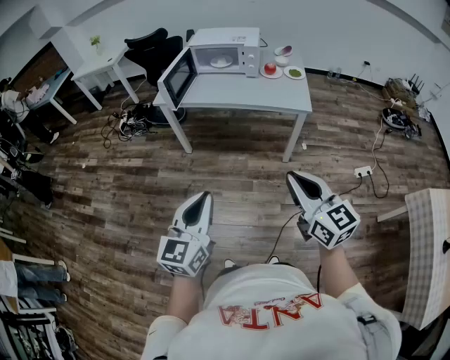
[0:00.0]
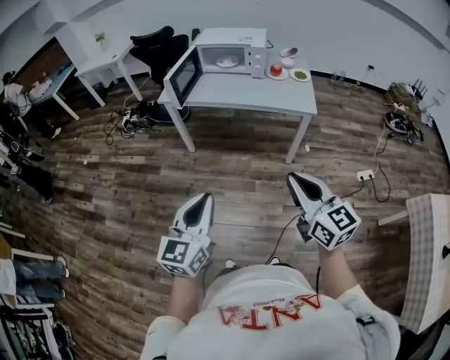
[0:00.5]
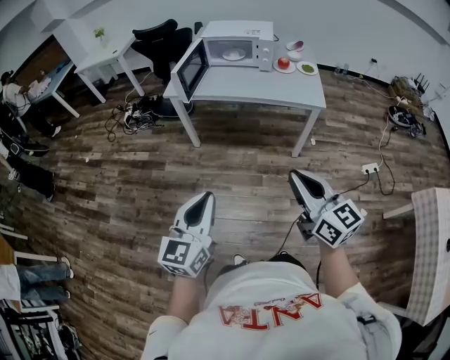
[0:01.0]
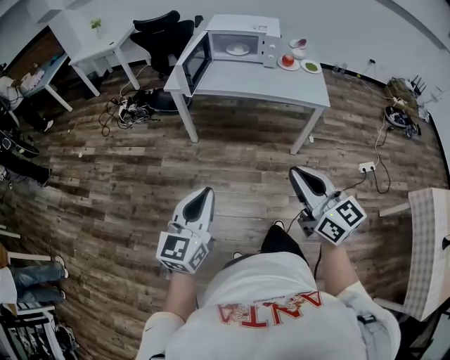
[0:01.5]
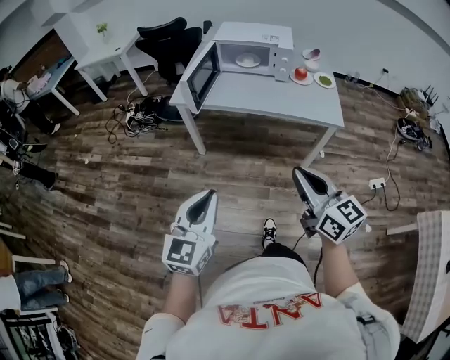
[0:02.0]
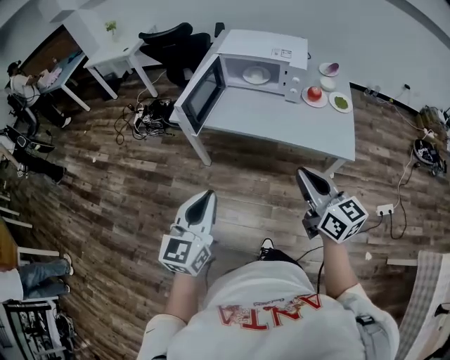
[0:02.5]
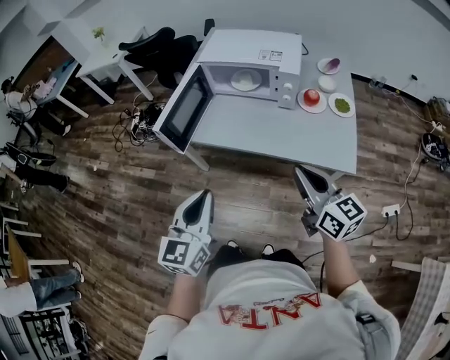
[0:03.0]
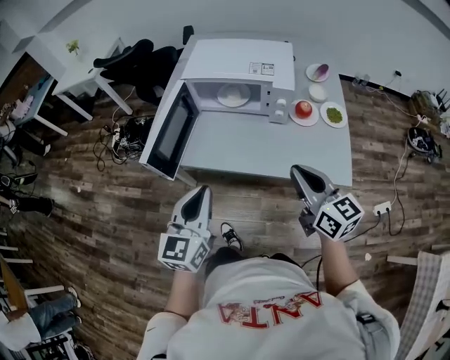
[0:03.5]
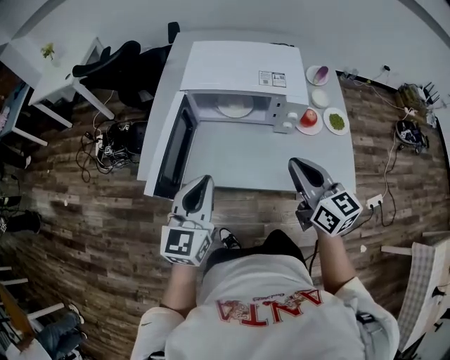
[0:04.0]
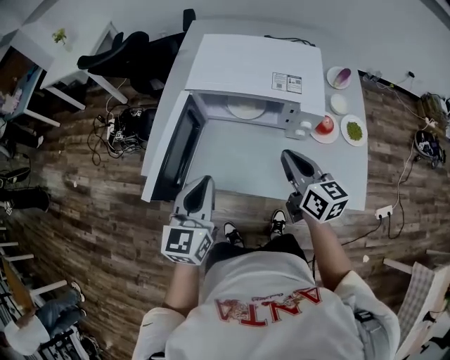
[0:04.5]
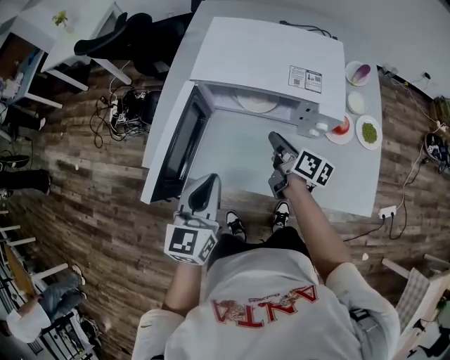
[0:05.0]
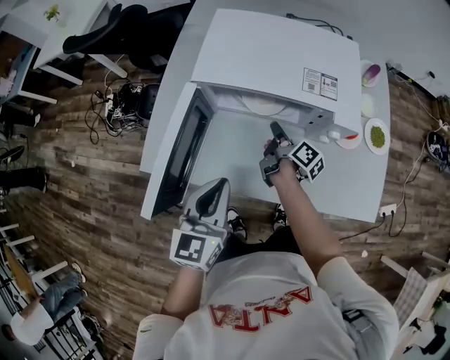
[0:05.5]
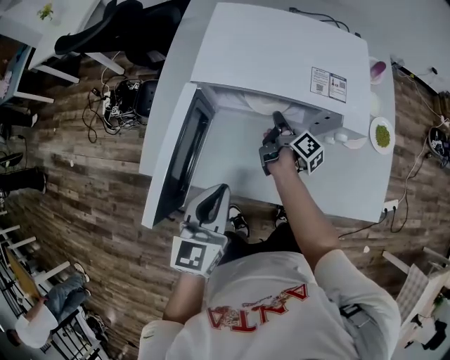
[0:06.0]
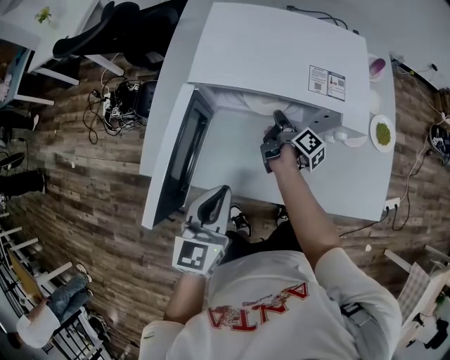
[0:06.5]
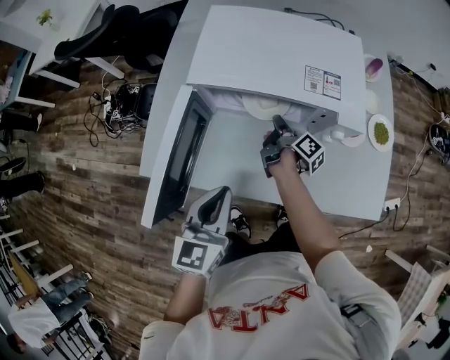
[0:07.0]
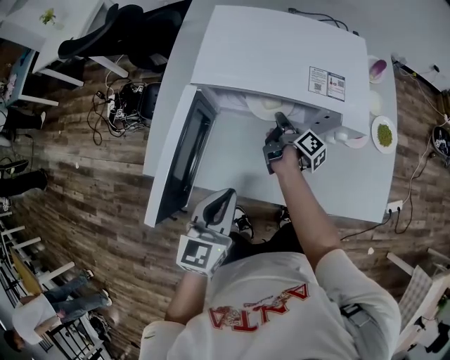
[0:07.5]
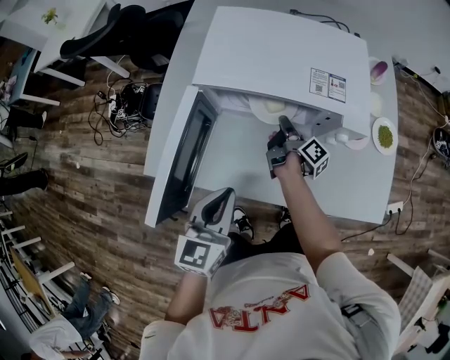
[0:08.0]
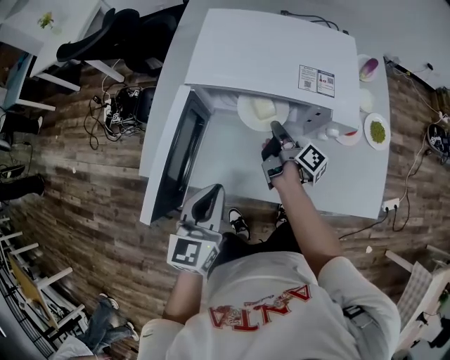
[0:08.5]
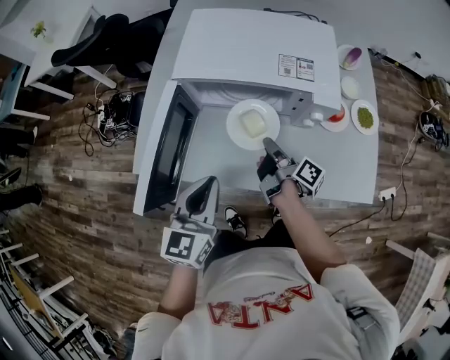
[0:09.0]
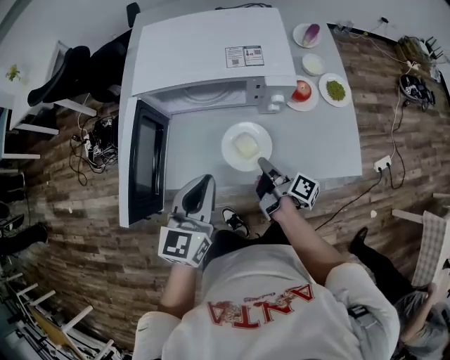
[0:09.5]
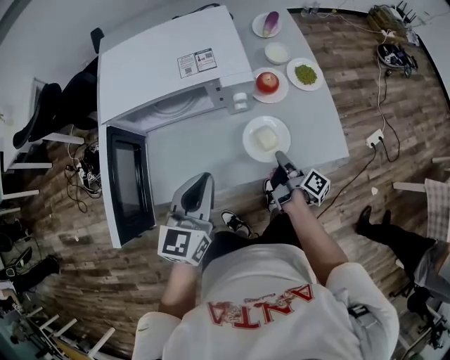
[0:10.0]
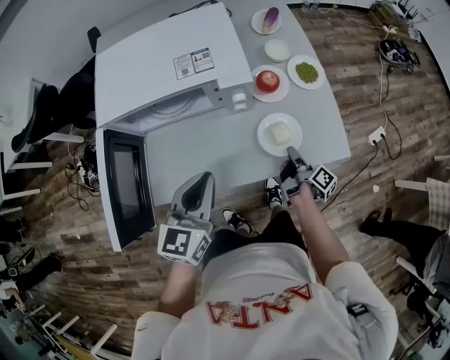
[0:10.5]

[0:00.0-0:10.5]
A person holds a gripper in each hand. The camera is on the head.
0:00.0 to 0:02.0: Both grippers travel together forward and to the left, roughly 15 cm.
0:02.0 to 0:04.0: The pair of grippers is taken forward, approximately 50 cm.
0:04.0 to 0:06.5: The left gripper shifts some 15 cm downward and forward, while the right gripper travels forward and downward by some 40 cm, and rotates around the line of its fingers by about 70 degrees, clockwise from behind.
0:06.5 to 0:08.5: The right gripper ends up about 5 cm from where it was.
0:08.5 to 0:10.5: The right gripper shifts approximately 35 cm to the right and backward, and turns by roughly 20 degrees, while the left gripper travels to the right by about 15 cm, and swivels roughly 20 degrees.

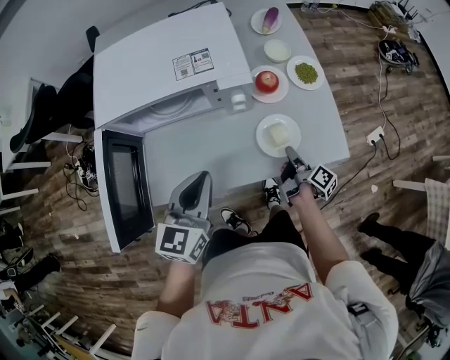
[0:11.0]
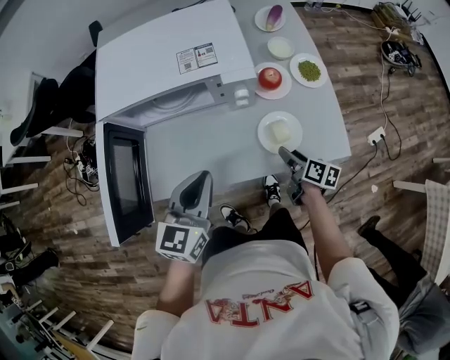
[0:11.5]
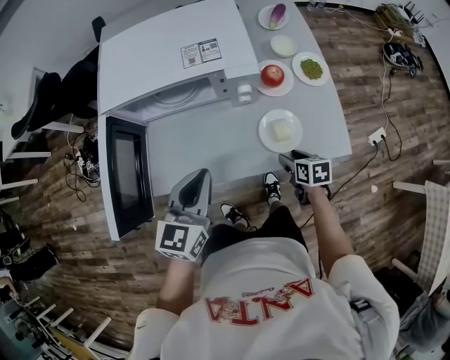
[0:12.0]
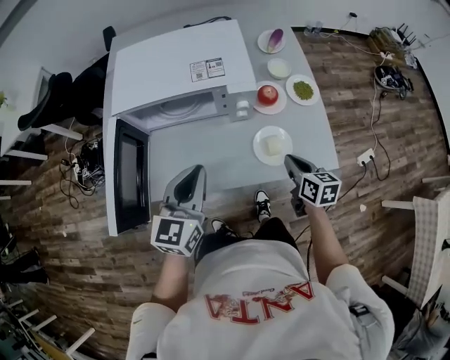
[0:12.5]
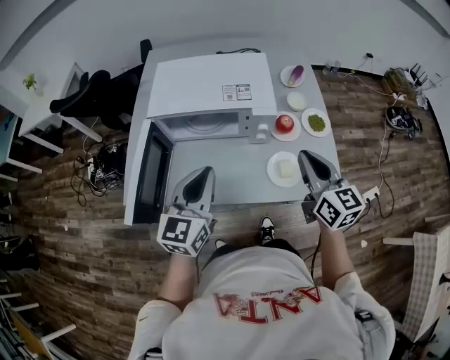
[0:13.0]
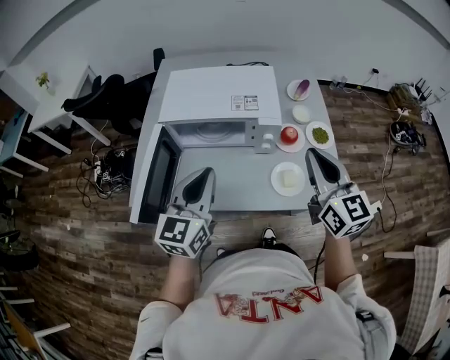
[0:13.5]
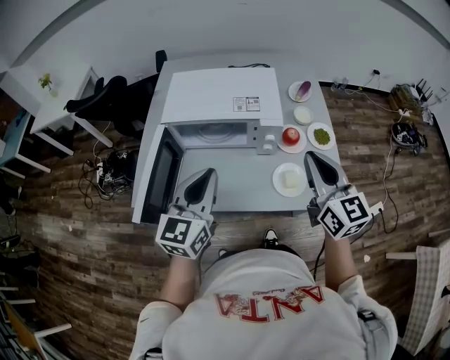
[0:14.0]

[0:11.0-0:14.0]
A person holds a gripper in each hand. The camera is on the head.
0:11.0 to 0:12.5: The right gripper goes some 10 cm upward, rotates around the line of its fingers by about 60 degrees, counterclockwise from behind, and opens, then closes once more.
0:12.5 to 0:14.0: The right gripper moves upward, roughly 25 cm, and tips its fingers upward by approximately 30 degrees; the left gripper is displaced upward by some 10 cm.

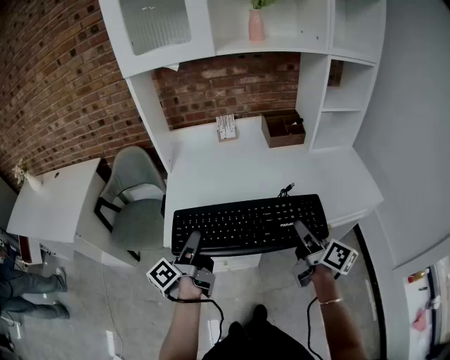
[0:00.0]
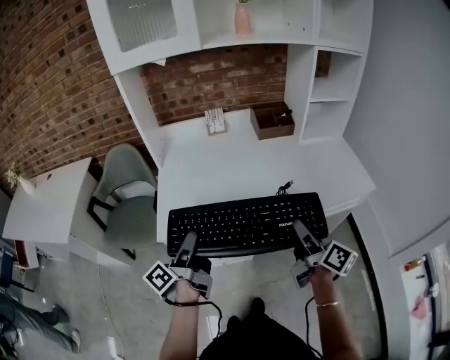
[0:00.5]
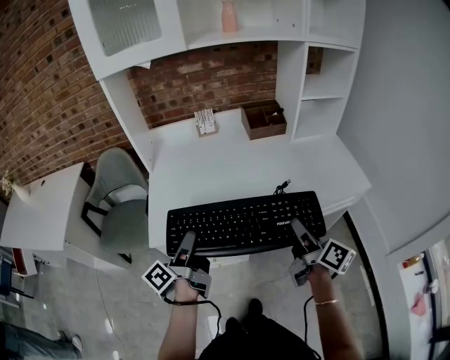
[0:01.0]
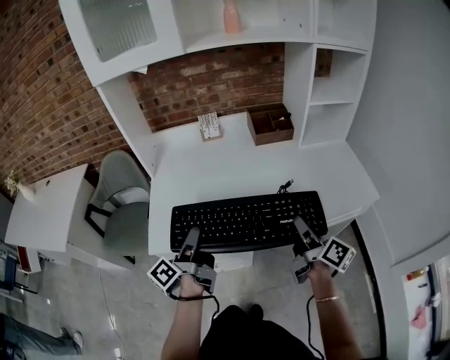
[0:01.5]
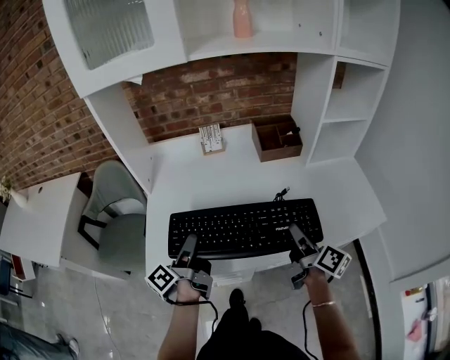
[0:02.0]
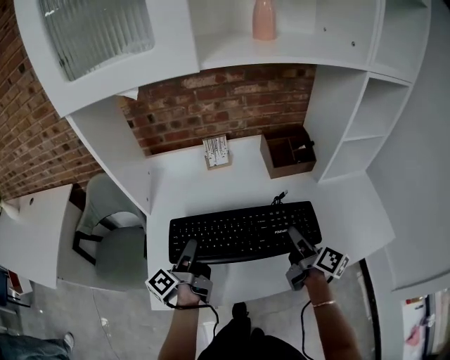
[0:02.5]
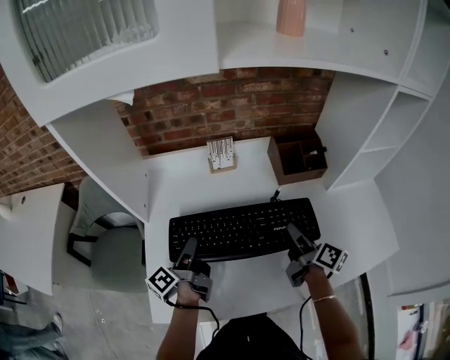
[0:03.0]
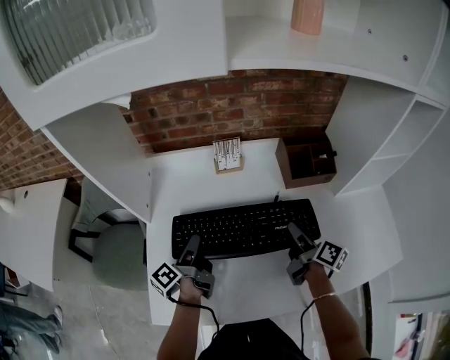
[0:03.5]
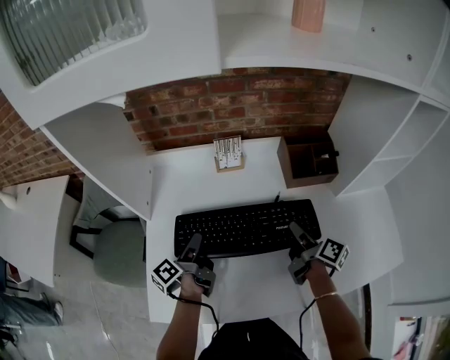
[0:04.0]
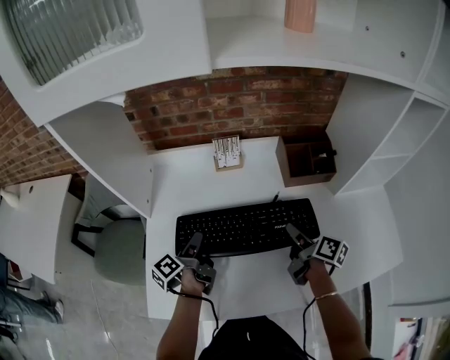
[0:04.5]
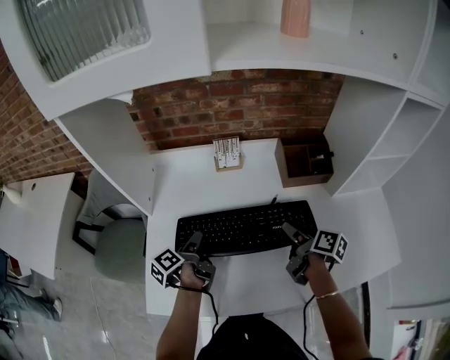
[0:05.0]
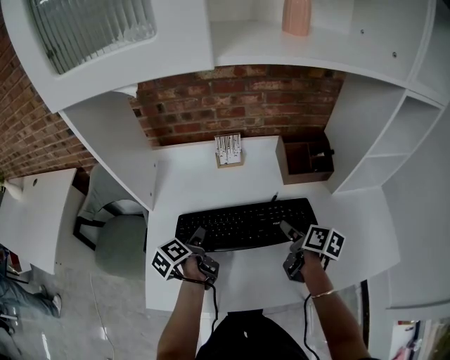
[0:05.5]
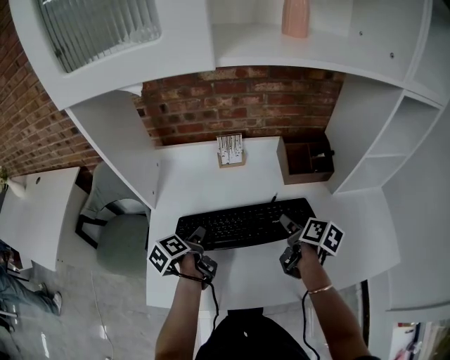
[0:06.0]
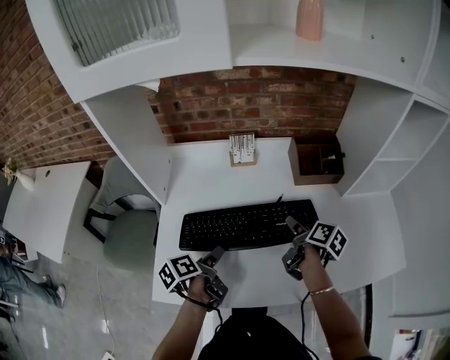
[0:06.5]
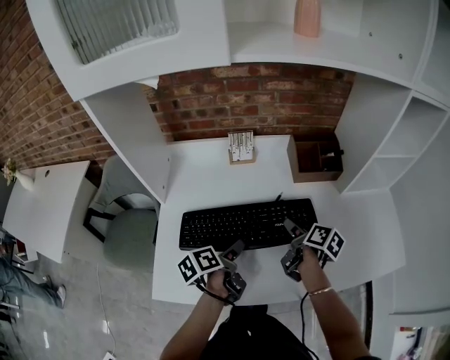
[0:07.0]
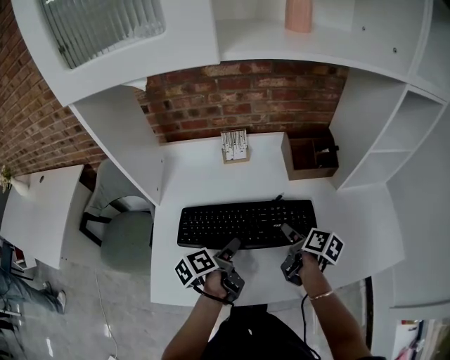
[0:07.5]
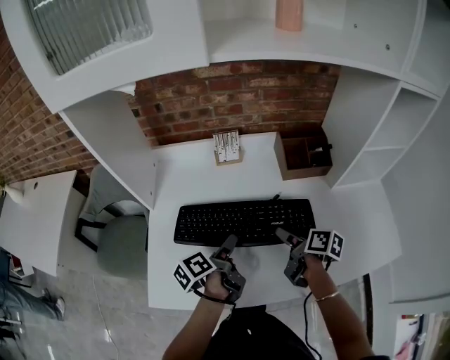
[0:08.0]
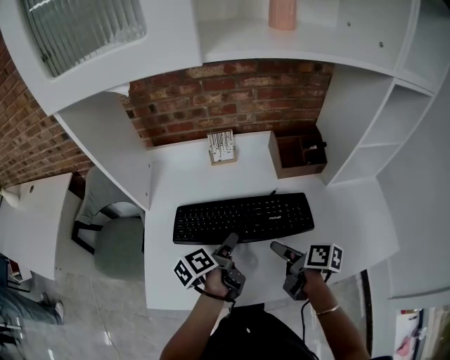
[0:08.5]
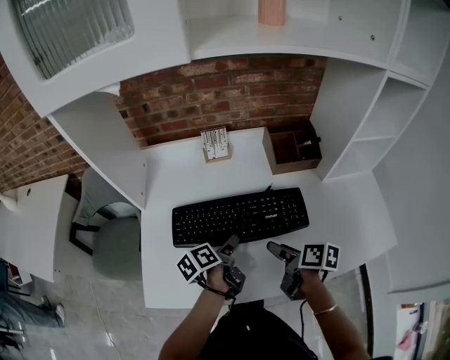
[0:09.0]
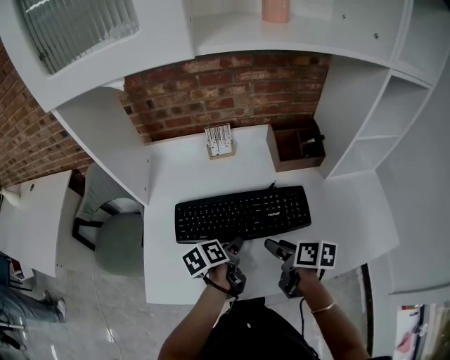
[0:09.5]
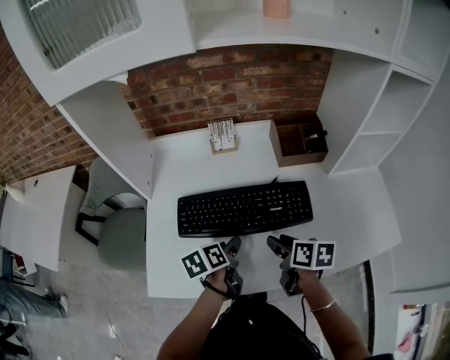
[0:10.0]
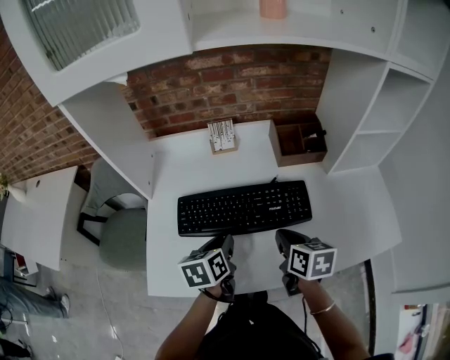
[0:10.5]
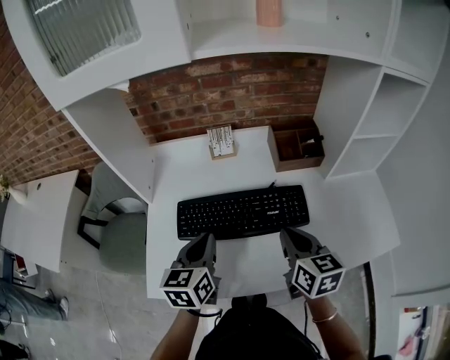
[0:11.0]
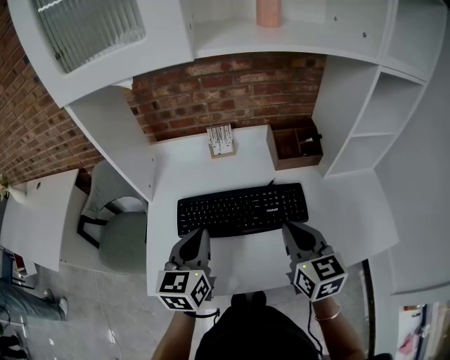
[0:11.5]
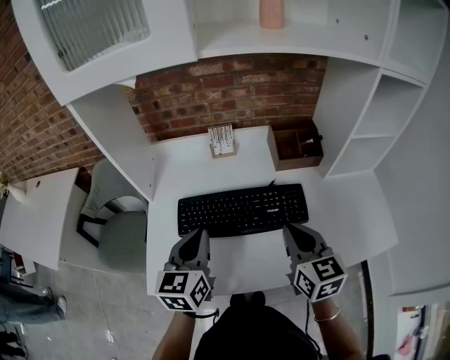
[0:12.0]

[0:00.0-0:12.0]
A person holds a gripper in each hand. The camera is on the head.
0:00.0 to 0:02.0: The right gripper changes place by about 15 cm.
0:02.0 to 0:04.0: The right gripper changes place by some 20 cm.
0:04.0 to 0:06.0: The right gripper swivels roughly 20 degrees, and opens up.
0:06.0 to 0:08.0: The right gripper changes place by about 5 cm.
0:08.0 to 0:10.0: The right gripper changes place by approximately 5 cm, and rotates roughly 20 degrees.
0:10.0 to 0:12.0: The right gripper heads upward, covering roughly 15 cm, turns by about 40 degrees, and closes its fingers.

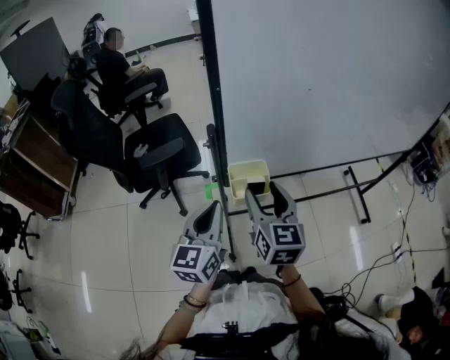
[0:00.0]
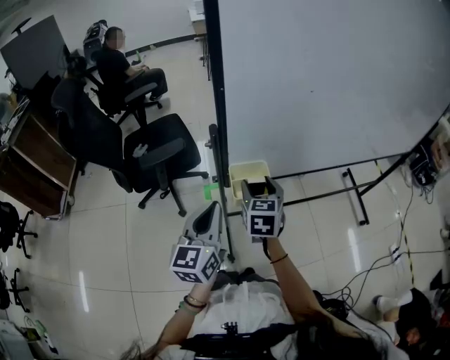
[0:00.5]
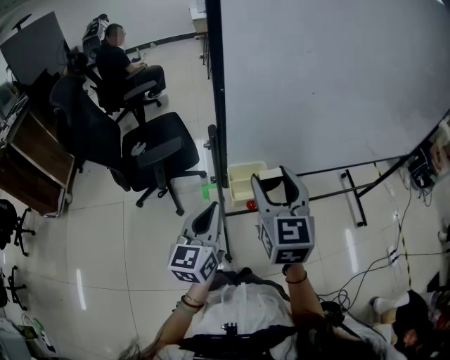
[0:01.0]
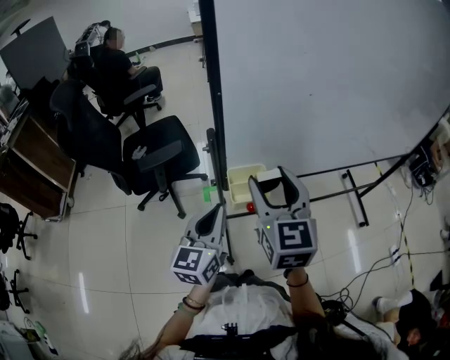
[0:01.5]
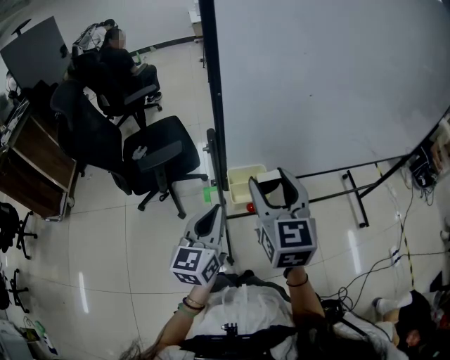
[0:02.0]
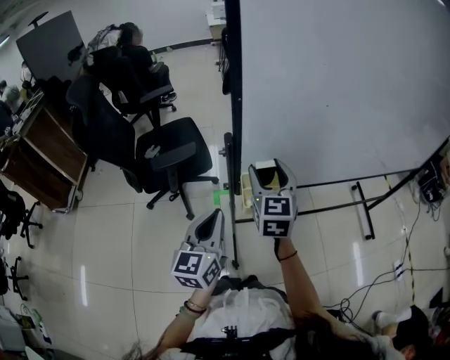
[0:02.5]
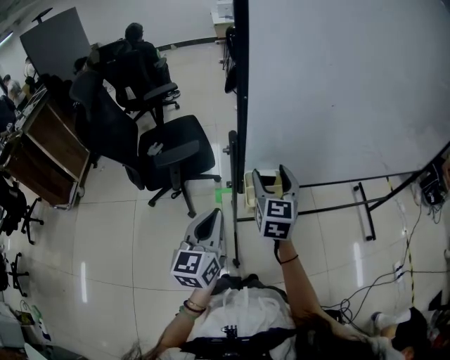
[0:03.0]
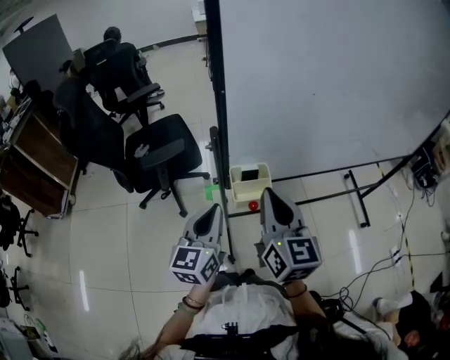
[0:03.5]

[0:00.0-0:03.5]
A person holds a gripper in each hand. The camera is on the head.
0:00.0 to 0:02.0: The right gripper goes about 10 cm upward.
0:02.0 to 0:03.5: The right gripper moves some 5 cm forward and comes back, and closes.
